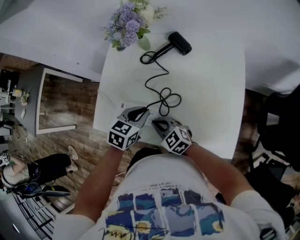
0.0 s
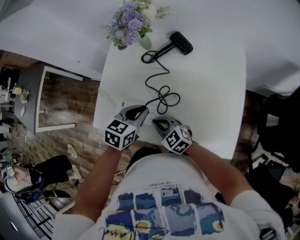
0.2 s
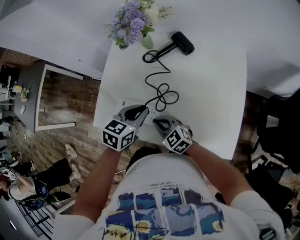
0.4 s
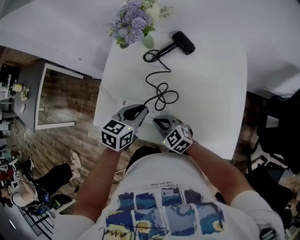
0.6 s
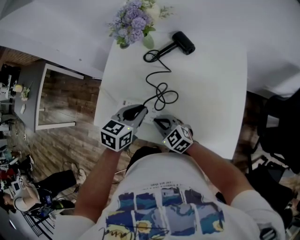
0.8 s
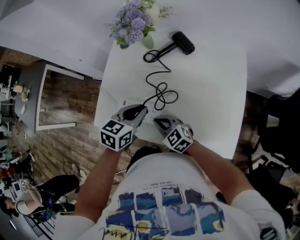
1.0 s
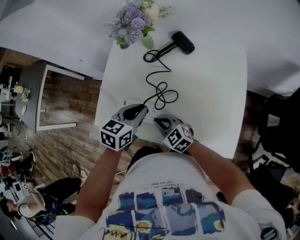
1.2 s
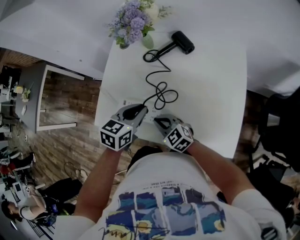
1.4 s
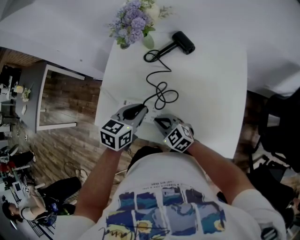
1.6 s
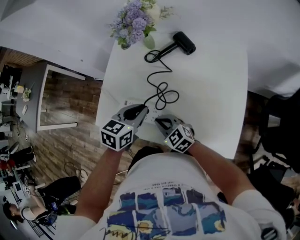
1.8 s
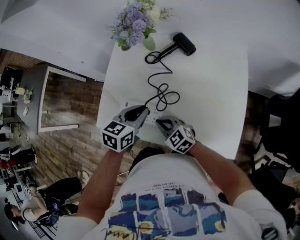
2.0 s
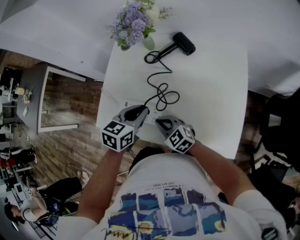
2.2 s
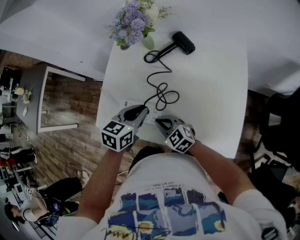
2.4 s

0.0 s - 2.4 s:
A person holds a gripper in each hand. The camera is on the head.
0.0 s - 1.2 s: There are only small adjustments of the grippers.
1.2 s - 2.4 s: The two grippers keep their place.

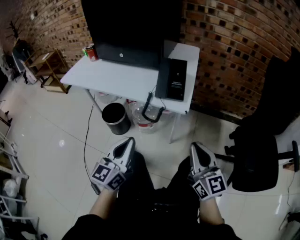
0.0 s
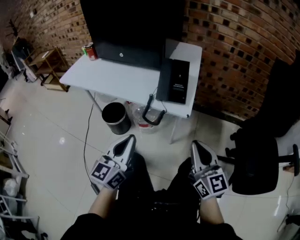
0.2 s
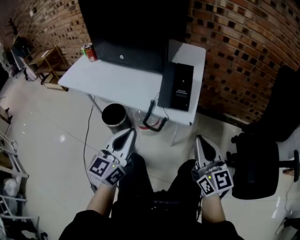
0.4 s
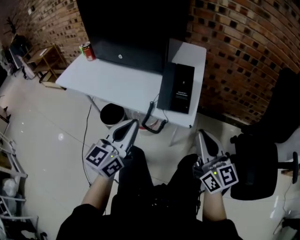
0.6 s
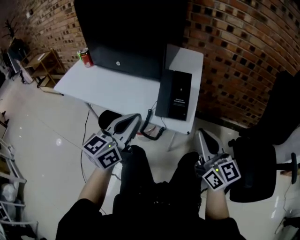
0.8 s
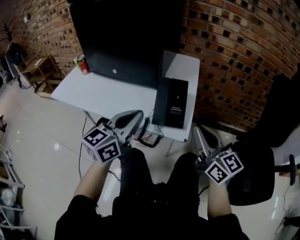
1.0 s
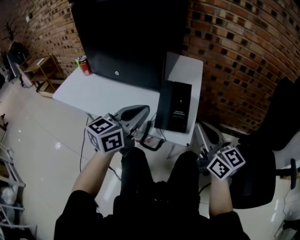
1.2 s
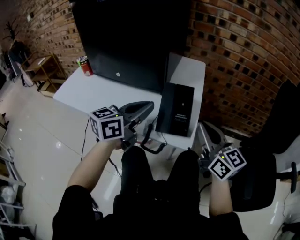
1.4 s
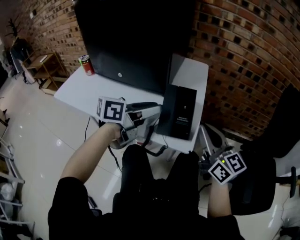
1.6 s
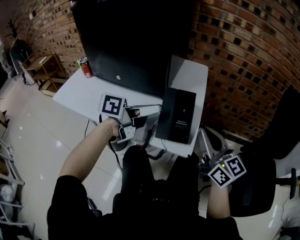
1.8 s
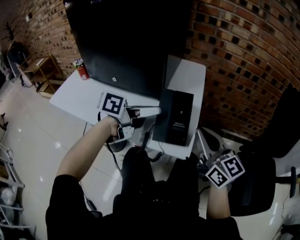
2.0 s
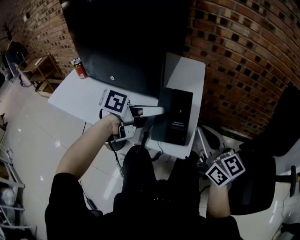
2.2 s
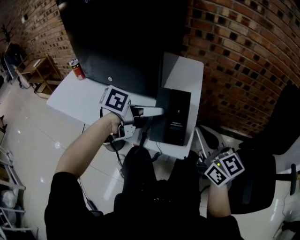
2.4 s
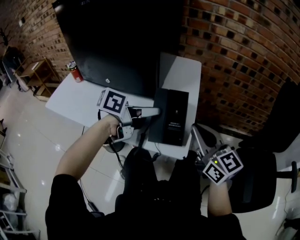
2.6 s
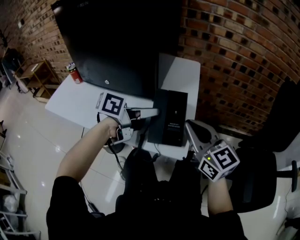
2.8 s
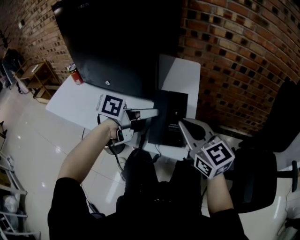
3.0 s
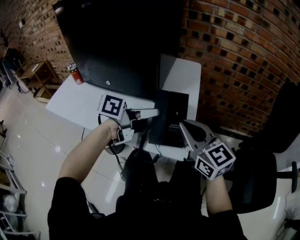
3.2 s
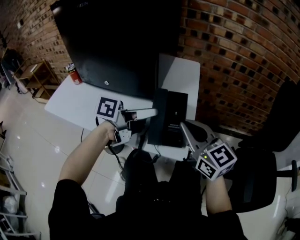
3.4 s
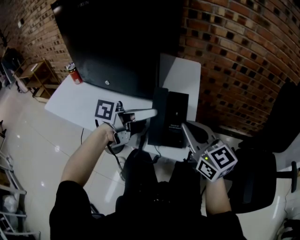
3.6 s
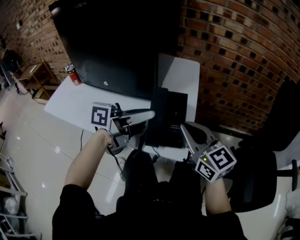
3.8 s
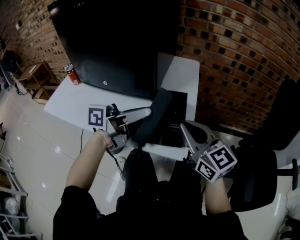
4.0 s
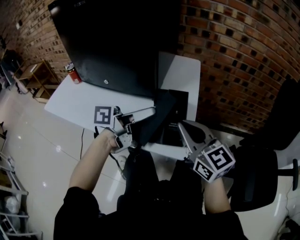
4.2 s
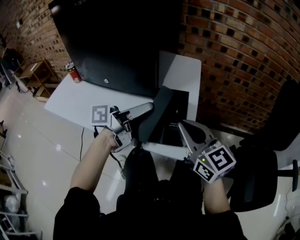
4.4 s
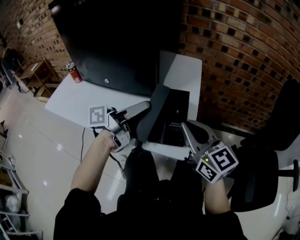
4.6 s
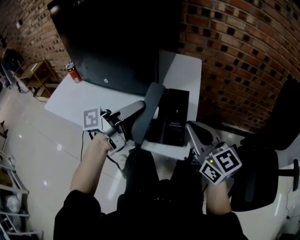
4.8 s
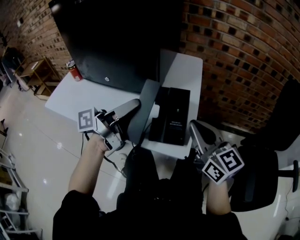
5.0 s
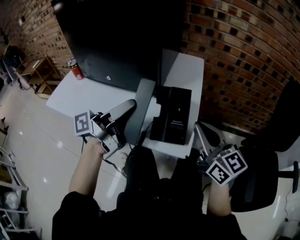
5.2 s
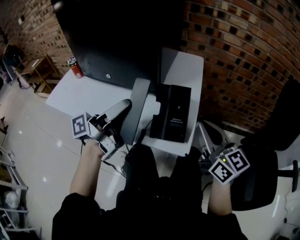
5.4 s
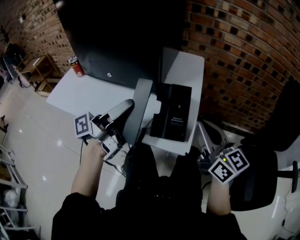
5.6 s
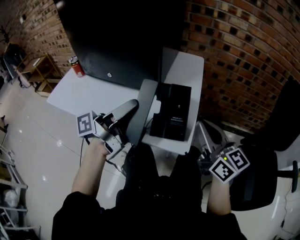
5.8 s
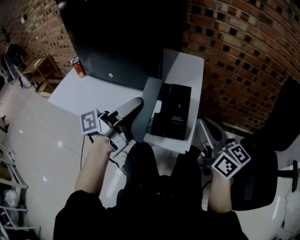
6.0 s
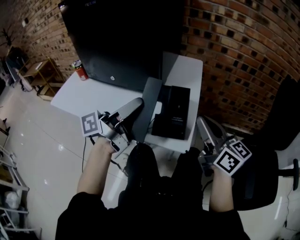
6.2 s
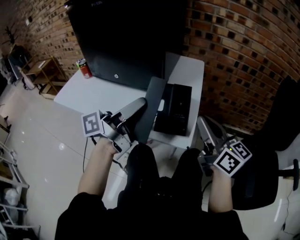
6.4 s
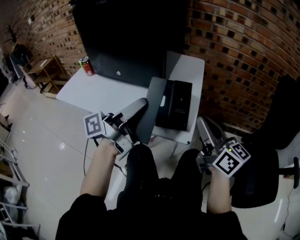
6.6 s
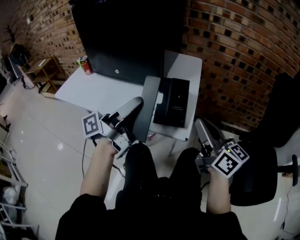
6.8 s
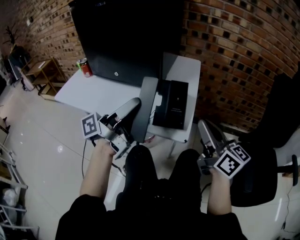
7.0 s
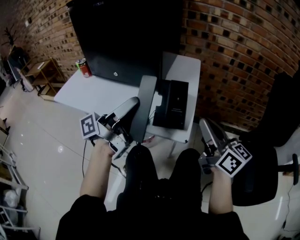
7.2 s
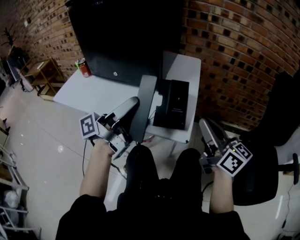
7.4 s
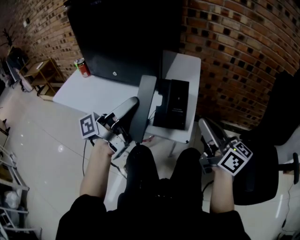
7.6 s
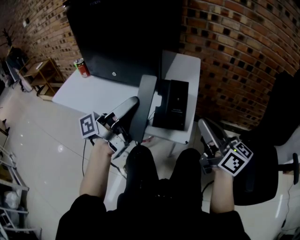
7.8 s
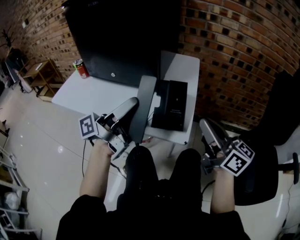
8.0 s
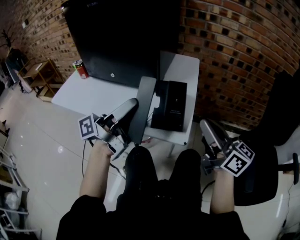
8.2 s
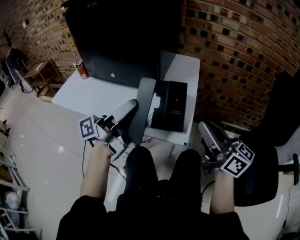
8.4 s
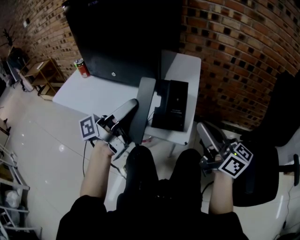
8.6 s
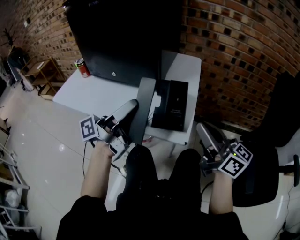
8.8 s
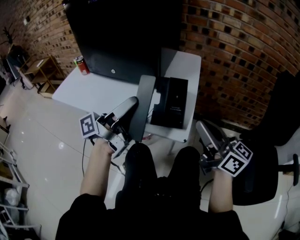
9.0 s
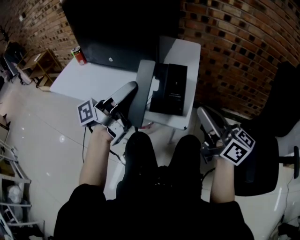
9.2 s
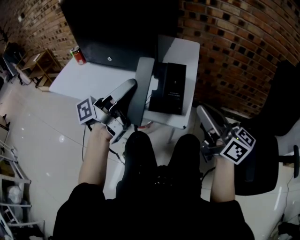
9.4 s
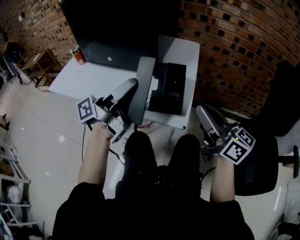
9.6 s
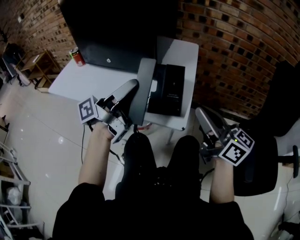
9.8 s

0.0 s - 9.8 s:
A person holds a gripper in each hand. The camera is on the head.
0.0 s - 1.4 s: Both grippers travel together forward and upward, about 25 cm. The left gripper swivels some 30 degrees.
1.4 s - 2.8 s: The left gripper is displaced forward by approximately 5 cm, changes its angle by approximately 30 degrees, and opens up.
2.8 s - 4.2 s: The left gripper swivels some 20 degrees.
4.2 s - 5.6 s: The right gripper is displaced to the right by about 5 cm; the left gripper goes roughly 5 cm to the left, and turns by some 30 degrees.
5.6 s - 7.0 s: The grippers both shift backward by about 5 cm.
7.0 s - 9.8 s: The grippers stay close to where they were, moving slightly.

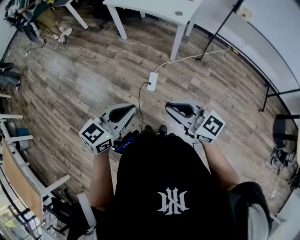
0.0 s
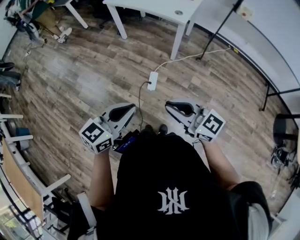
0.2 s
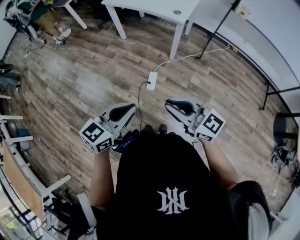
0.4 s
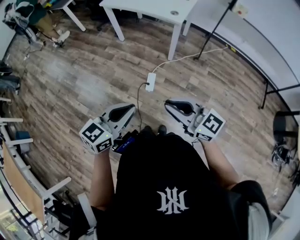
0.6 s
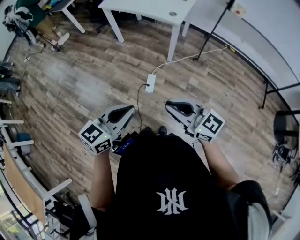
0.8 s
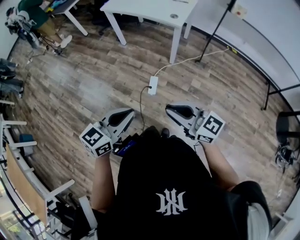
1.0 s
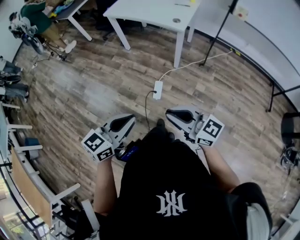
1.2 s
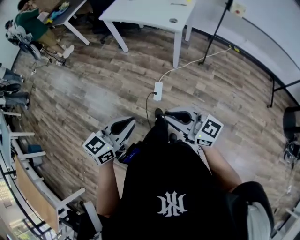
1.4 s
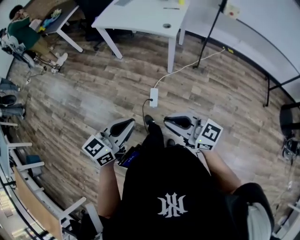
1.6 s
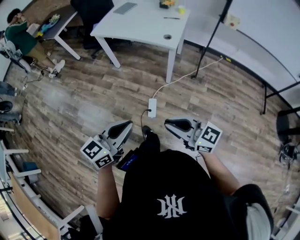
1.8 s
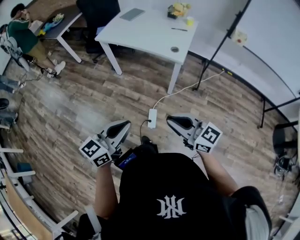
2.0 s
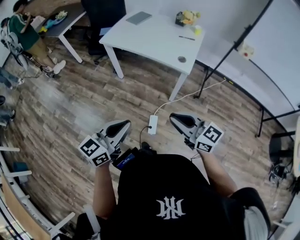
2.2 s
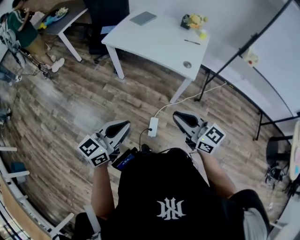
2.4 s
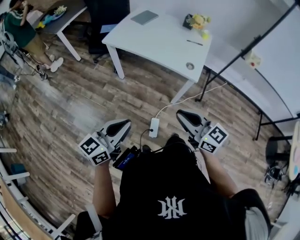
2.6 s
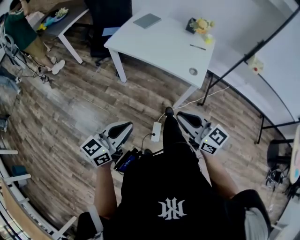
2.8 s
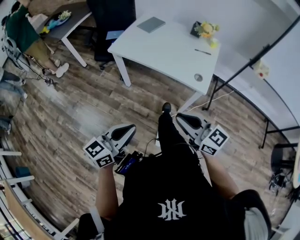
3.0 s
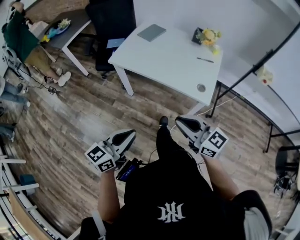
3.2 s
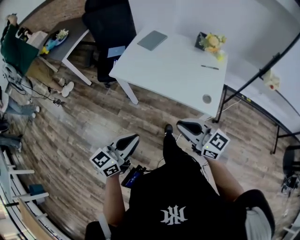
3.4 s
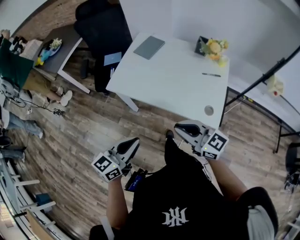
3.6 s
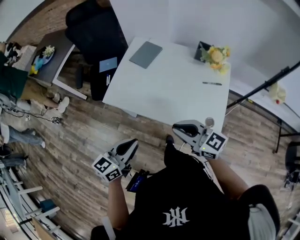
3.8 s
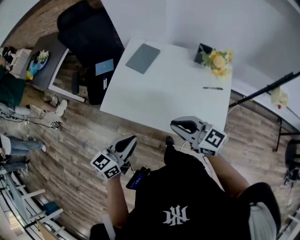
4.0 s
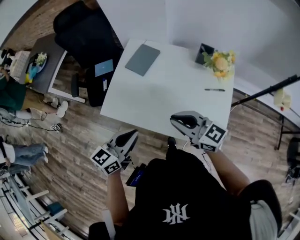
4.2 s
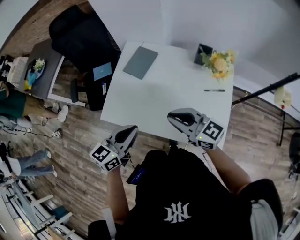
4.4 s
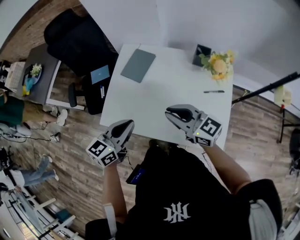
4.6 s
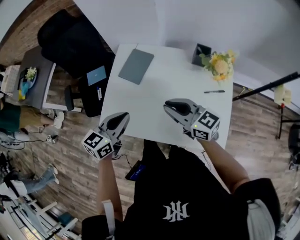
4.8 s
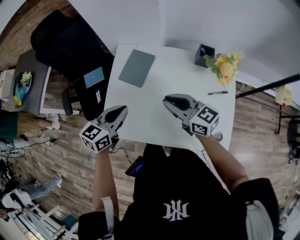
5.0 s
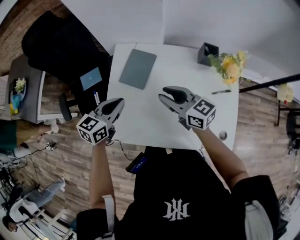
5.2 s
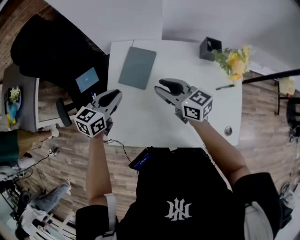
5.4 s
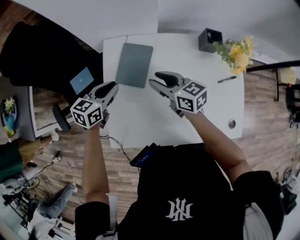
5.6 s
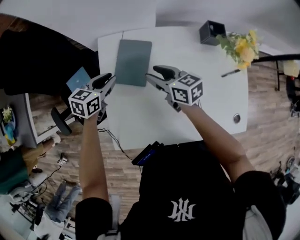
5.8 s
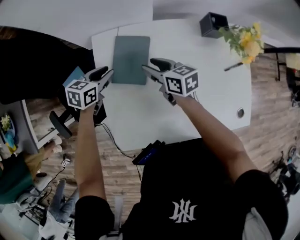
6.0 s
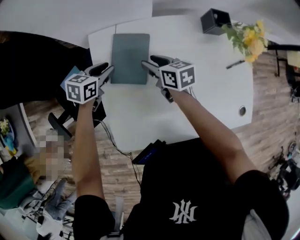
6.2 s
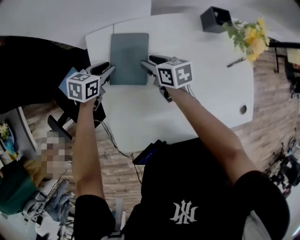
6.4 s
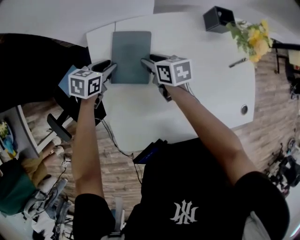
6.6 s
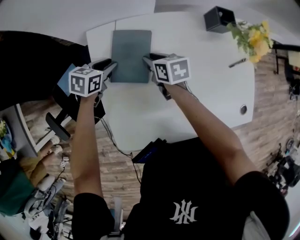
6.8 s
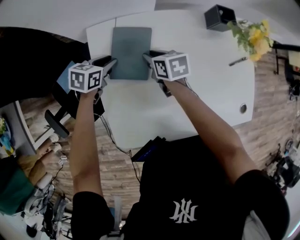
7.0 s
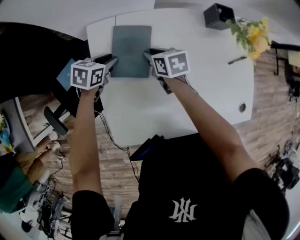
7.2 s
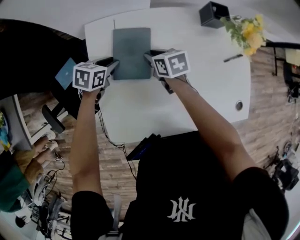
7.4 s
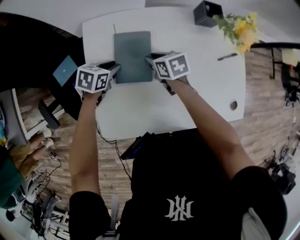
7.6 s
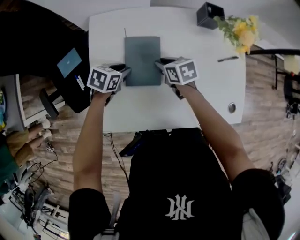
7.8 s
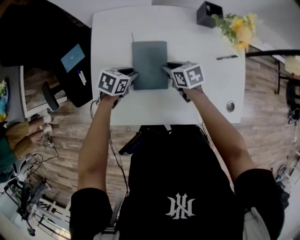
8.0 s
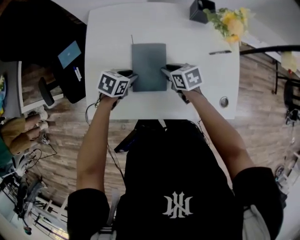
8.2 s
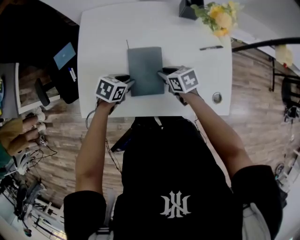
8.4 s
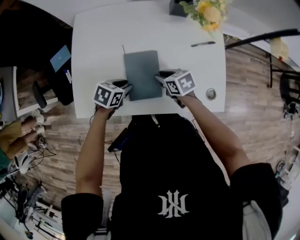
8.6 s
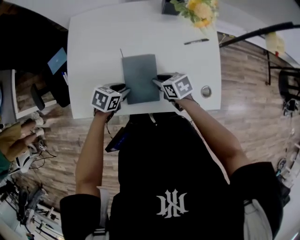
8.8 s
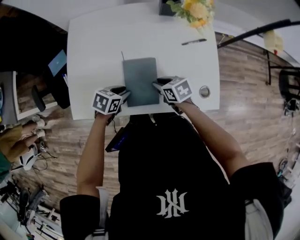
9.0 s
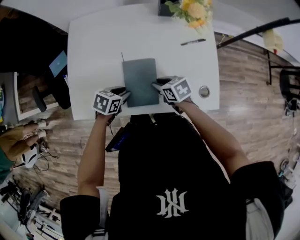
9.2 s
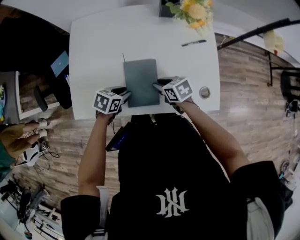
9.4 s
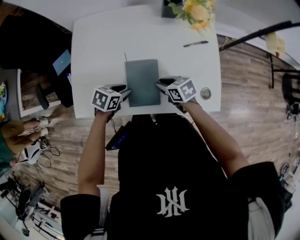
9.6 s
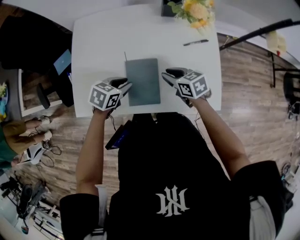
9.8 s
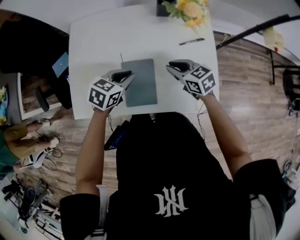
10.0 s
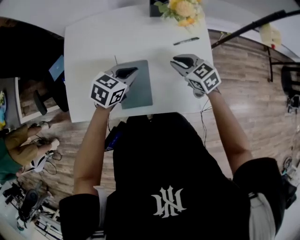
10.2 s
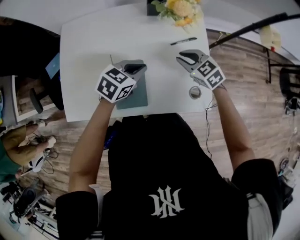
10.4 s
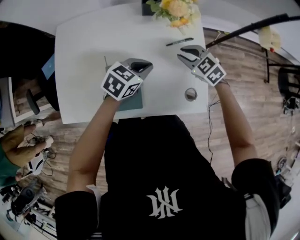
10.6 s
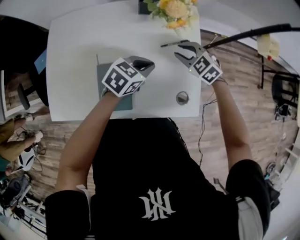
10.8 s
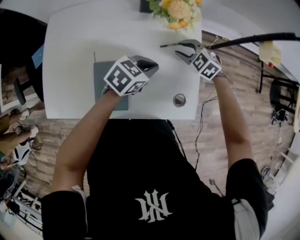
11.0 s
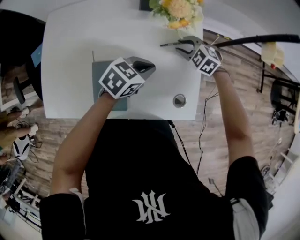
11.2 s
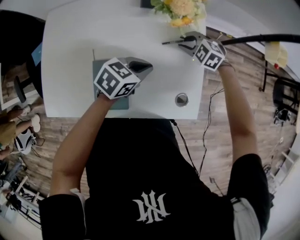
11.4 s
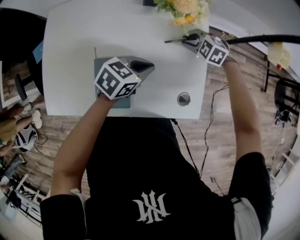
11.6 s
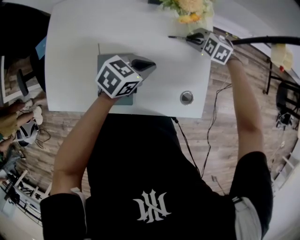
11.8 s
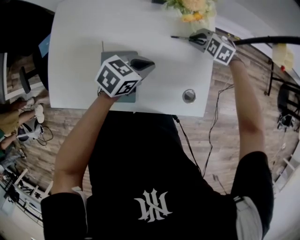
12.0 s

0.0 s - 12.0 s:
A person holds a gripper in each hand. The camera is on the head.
0.0 s - 1.6 s: The left gripper is displaced forward by some 5 cm.
1.6 s - 3.0 s: The right gripper shifts some 40 cm forward, while the left gripper shifts some 35 cm forward and to the left.
3.0 s - 4.4 s: The pair of grippers is taken forward, roughly 40 cm.
4.4 s - 6.0 s: The right gripper moves roughly 40 cm, rotates some 50 degrees, and opens its fingers, while the left gripper ends up about 50 cm from where it was, rotates roughly 40 degrees, and opens up.
6.0 s - 7.6 s: The right gripper moves downward, roughly 5 cm, and turns by about 20 degrees, while the left gripper moves to the right and downward, about 10 cm.
7.6 s - 9.0 s: The left gripper shifts by roughly 30 cm. Meanwhile the right gripper changes place by roughly 30 cm.
9.0 s - 10.4 s: The left gripper shifts by some 20 cm, rotates about 20 degrees, and closes up, while the right gripper changes place by approximately 20 cm, and rotates roughly 40 degrees.
10.4 s - 12.0 s: The right gripper moves some 15 cm, and swivels about 40 degrees.
